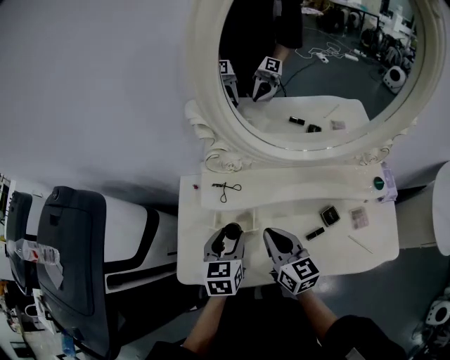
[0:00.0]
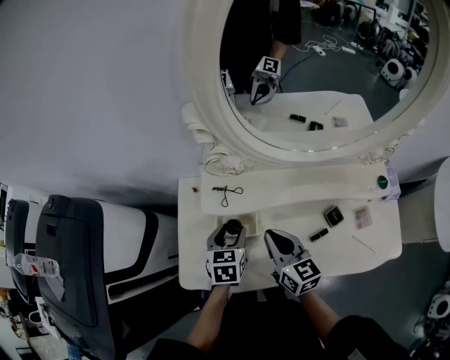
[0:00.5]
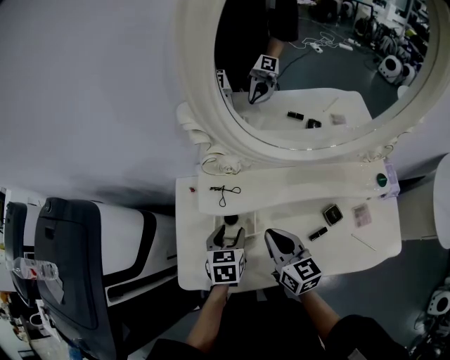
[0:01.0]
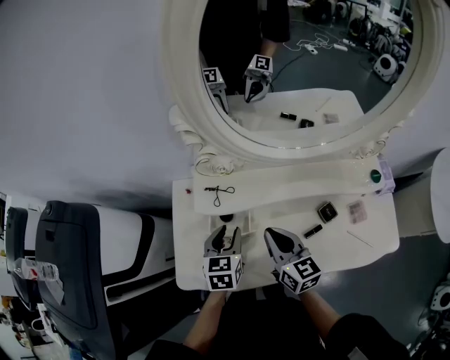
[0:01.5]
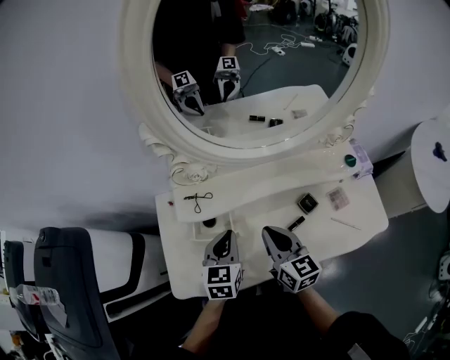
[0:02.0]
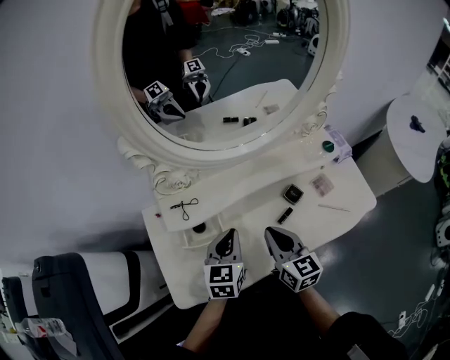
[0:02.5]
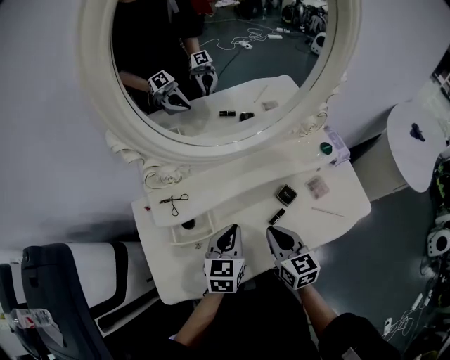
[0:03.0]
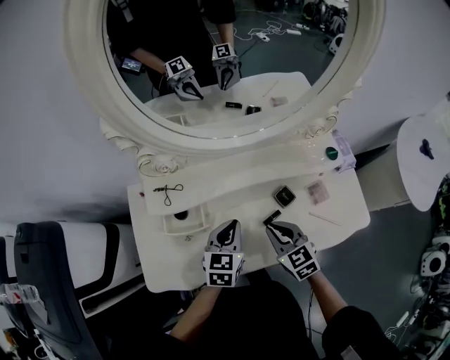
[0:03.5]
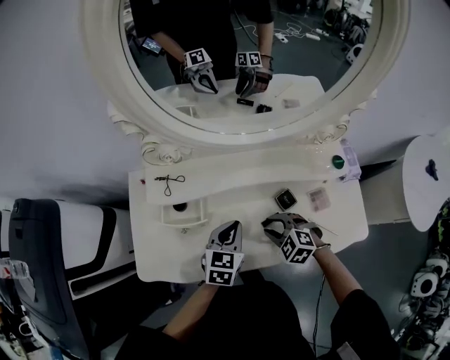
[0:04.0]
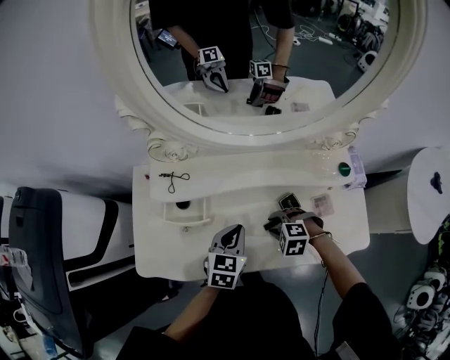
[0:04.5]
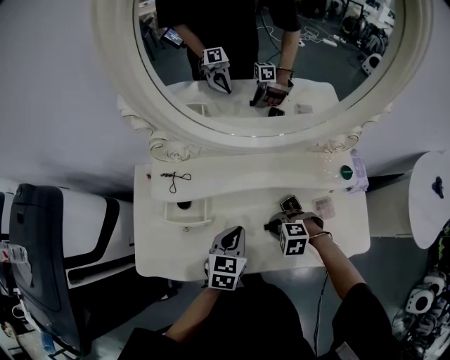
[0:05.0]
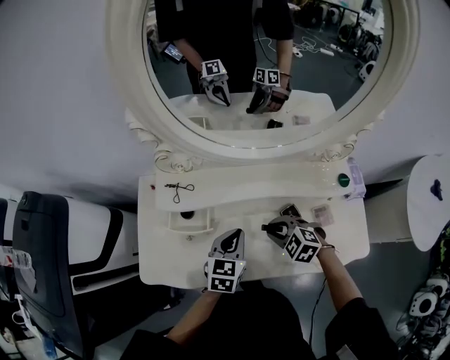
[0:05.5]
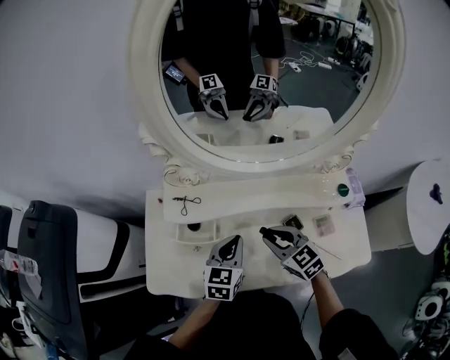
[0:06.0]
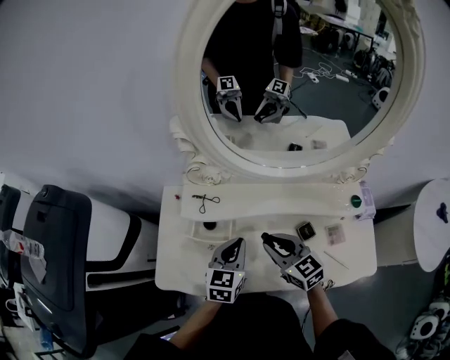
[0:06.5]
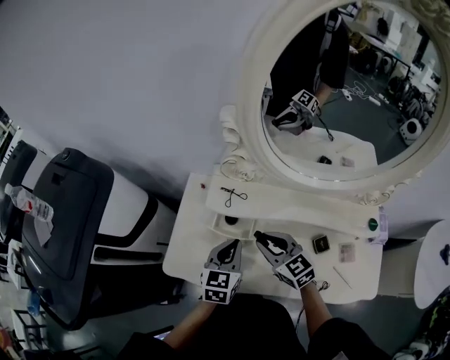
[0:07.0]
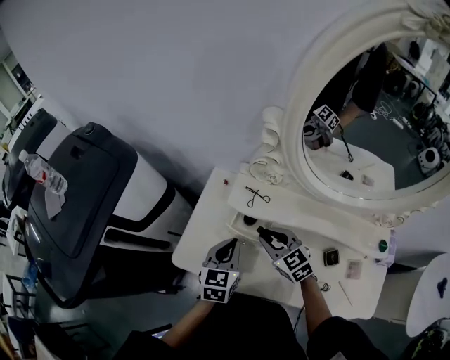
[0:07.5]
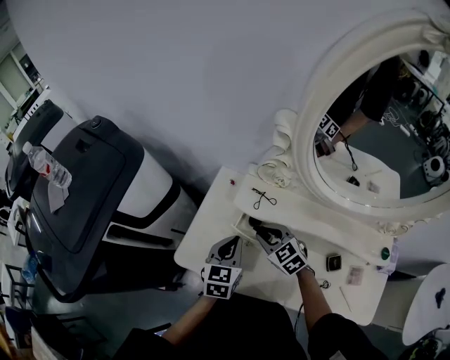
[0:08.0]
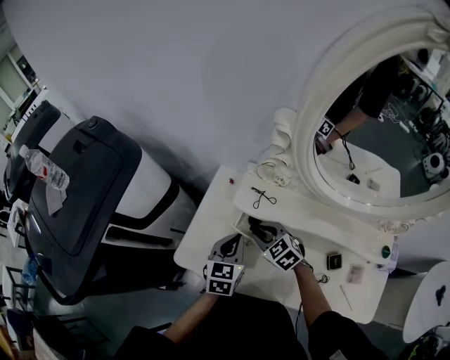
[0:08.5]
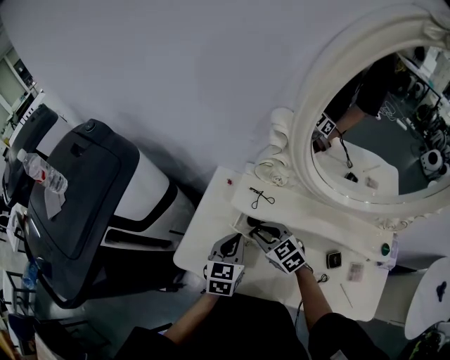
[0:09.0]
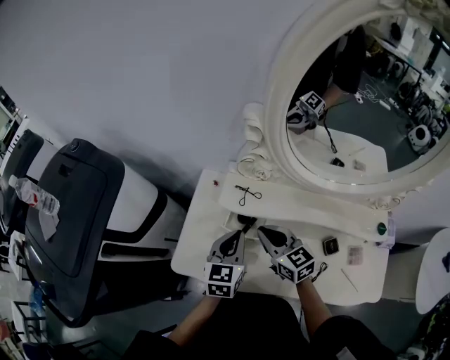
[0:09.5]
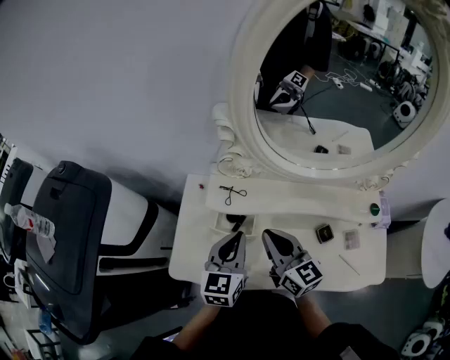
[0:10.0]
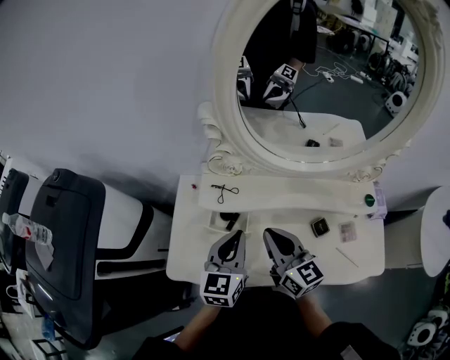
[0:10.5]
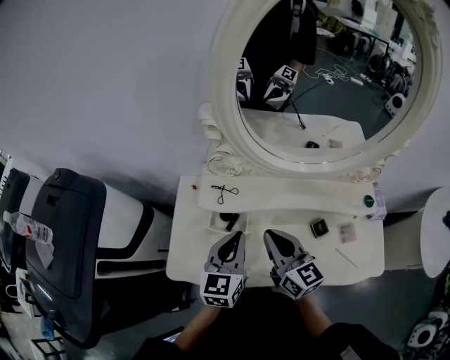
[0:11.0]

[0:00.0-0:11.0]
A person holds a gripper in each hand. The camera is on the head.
0:00.0 to 0:02.0: The two grippers go roughly 5 cm to the right. The left gripper closes its fingers.
0:02.0 to 0:03.5: The left gripper moves to the right, about 10 cm. Meanwhile the right gripper is displaced to the right and downward by approximately 10 cm, and rotates approximately 30 degrees.
0:03.5 to 0:05.5: The right gripper goes downward and returns, roughly 10 cm each way, and rotates some 50 degrees.
0:05.5 to 0:07.5: The right gripper goes about 25 cm to the left and forward, and changes its angle by some 30 degrees, while the left gripper travels to the left by approximately 20 cm, and turns by roughly 30 degrees.
0:07.5 to 0:09.0: The right gripper changes place by about 5 cm.
0:09.0 to 0:11.0: The left gripper goes approximately 10 cm upward and to the right. Meanwhile the right gripper is displaced upward, to the right and backward by approximately 20 cm, angles its fingers upward, by some 30 degrees, and closes.

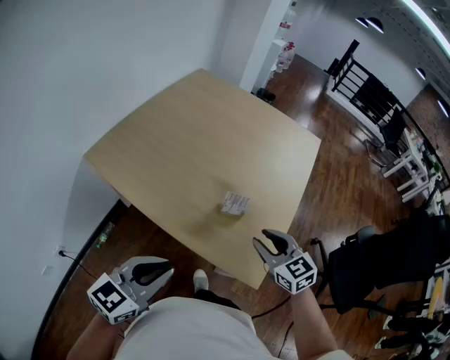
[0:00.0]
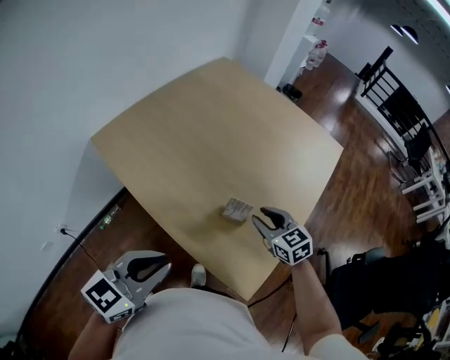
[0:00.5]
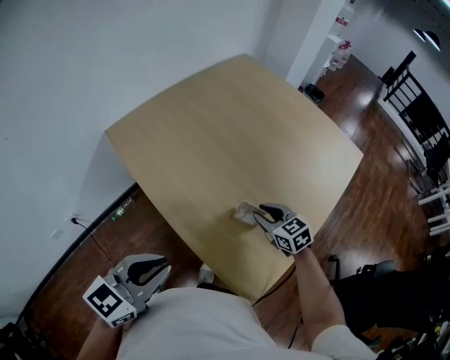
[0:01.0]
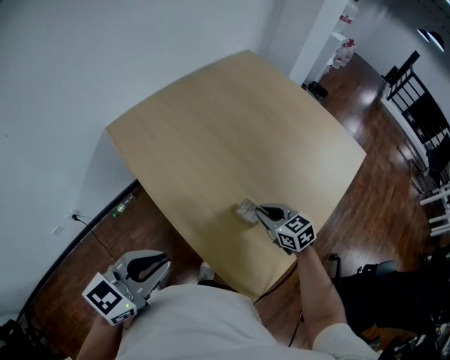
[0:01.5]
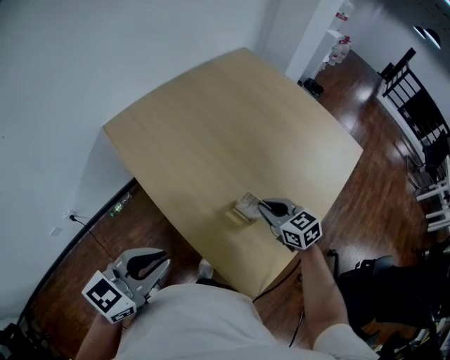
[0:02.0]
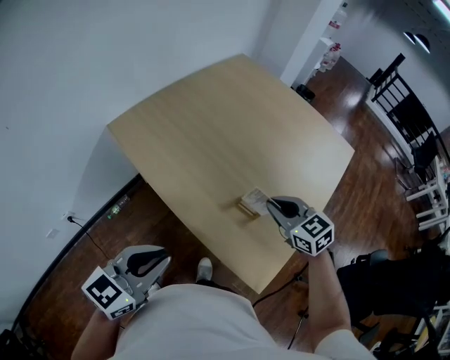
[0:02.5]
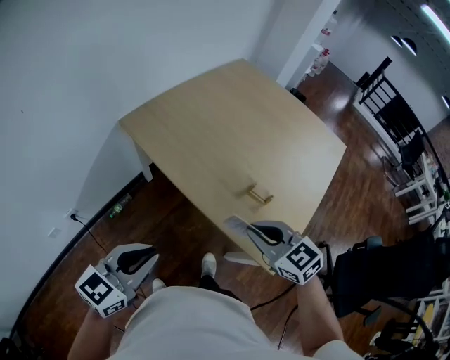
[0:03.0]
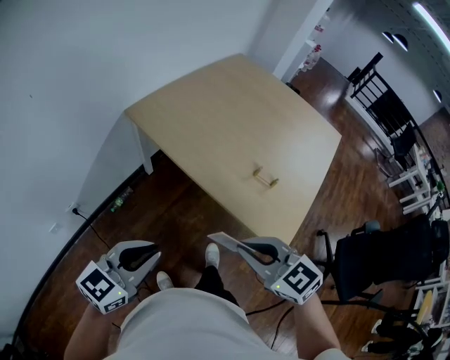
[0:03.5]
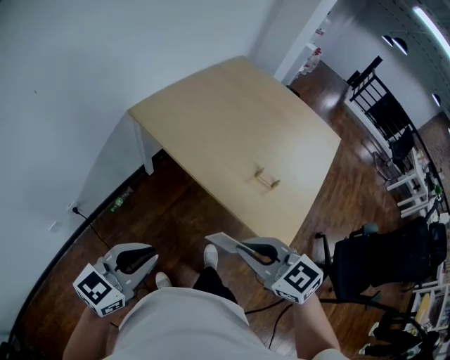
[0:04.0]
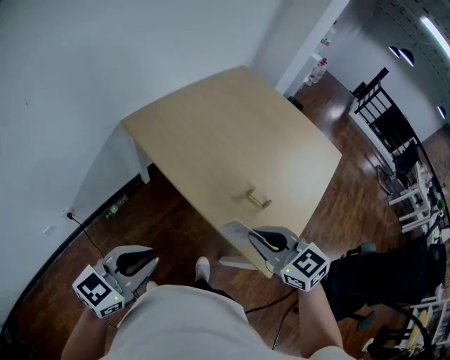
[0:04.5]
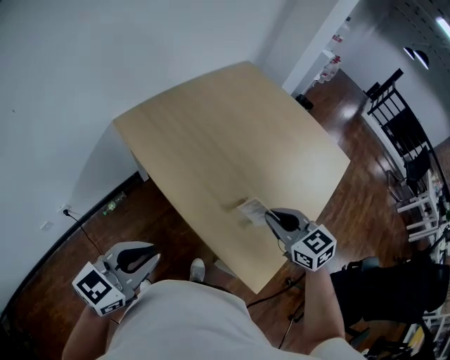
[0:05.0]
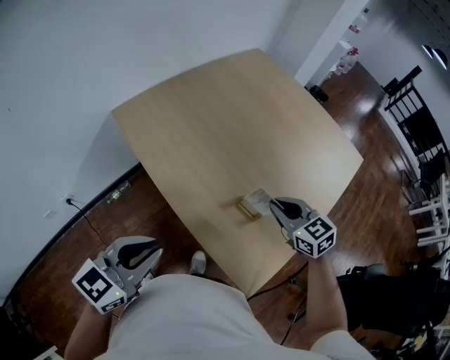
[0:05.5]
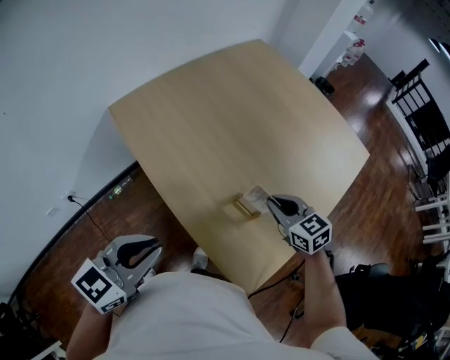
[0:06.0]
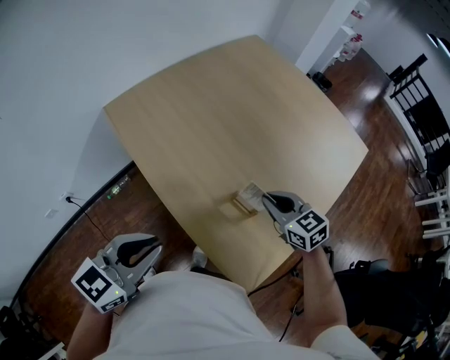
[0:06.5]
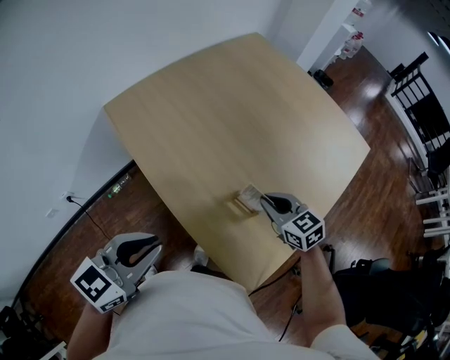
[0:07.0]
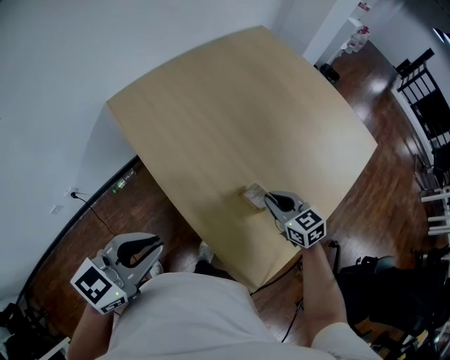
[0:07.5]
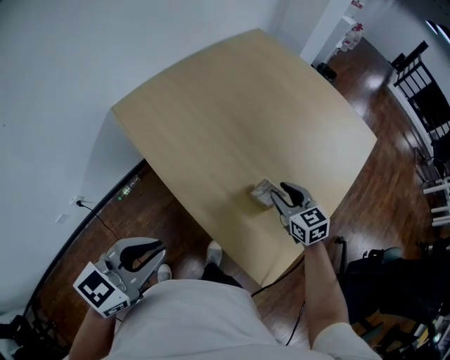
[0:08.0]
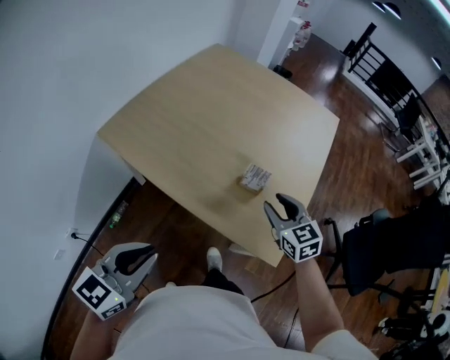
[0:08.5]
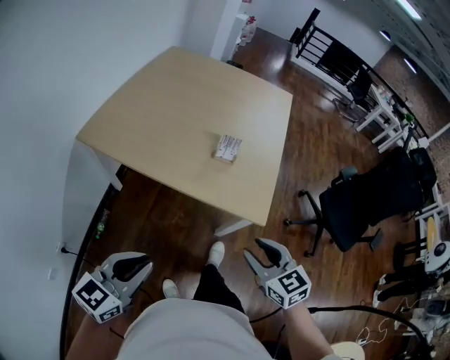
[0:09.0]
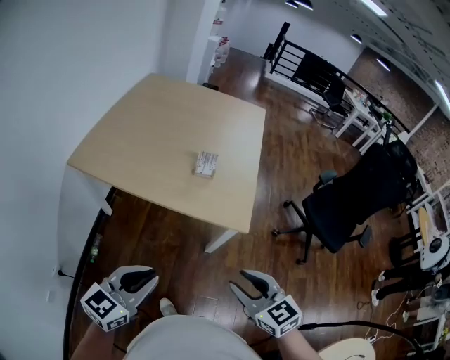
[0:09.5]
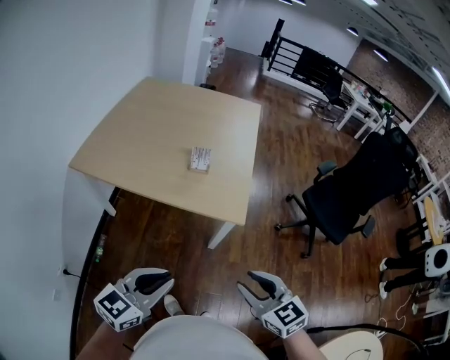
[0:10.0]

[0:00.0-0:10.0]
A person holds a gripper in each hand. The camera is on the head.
0:00.0 to 0:02.0: The right gripper is displaced forward and downward by some 20 cm, turns by approximately 20 degrees, and closes up. The left gripper moves forward, roughly 5 cm.
0:02.0 to 0:04.0: The right gripper moves backward, to the left and upward, about 40 cm, while the left gripper travels to the left and backward by approximately 25 cm.
0:04.0 to 0:06.0: The left gripper goes roughly 25 cm to the right and forward, while the right gripper moves forward, to the right and downward, roughly 40 cm.
0:06.0 to 0:08.0: The right gripper opens up.
0:08.0 to 0:10.0: The left gripper ends up some 30 cm from where it was, and turns by roughly 40 degrees. The right gripper moves roughly 60 cm, and swivels approximately 30 degrees.

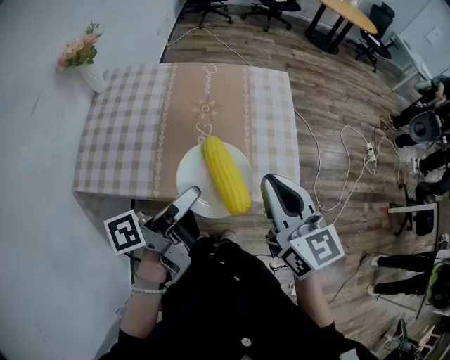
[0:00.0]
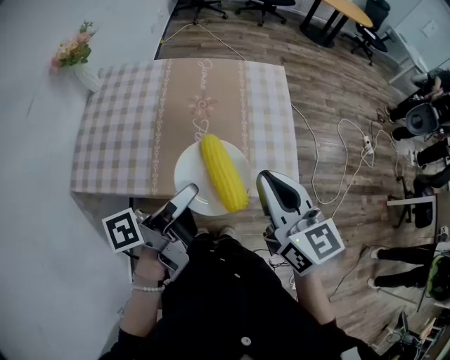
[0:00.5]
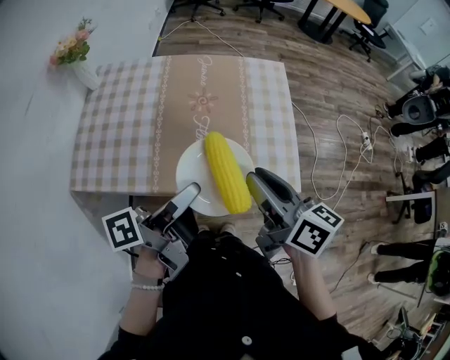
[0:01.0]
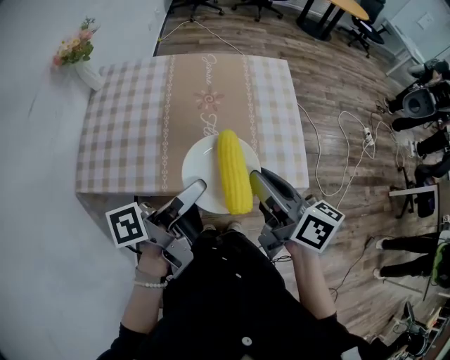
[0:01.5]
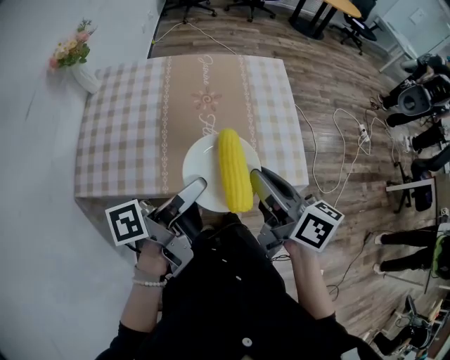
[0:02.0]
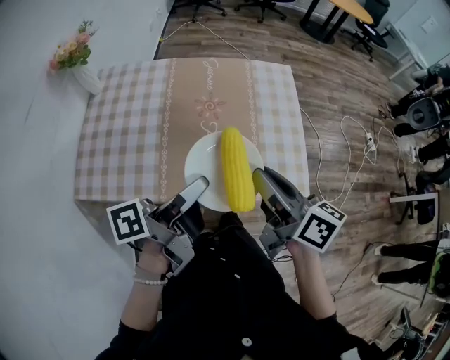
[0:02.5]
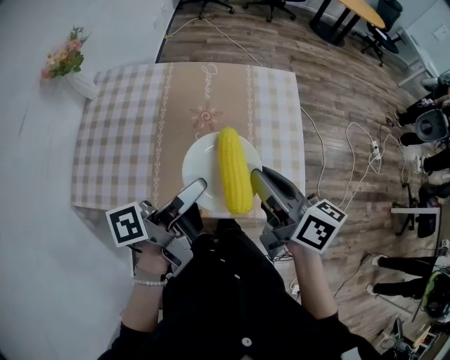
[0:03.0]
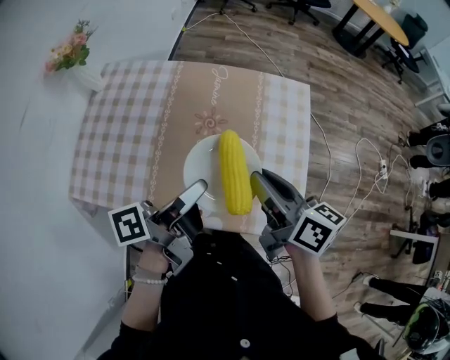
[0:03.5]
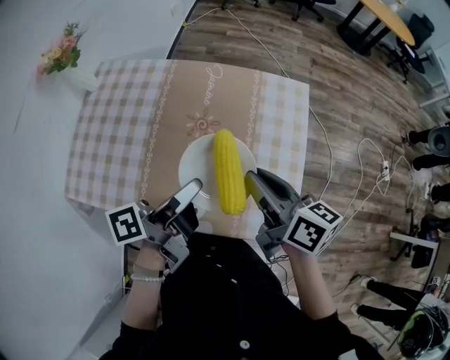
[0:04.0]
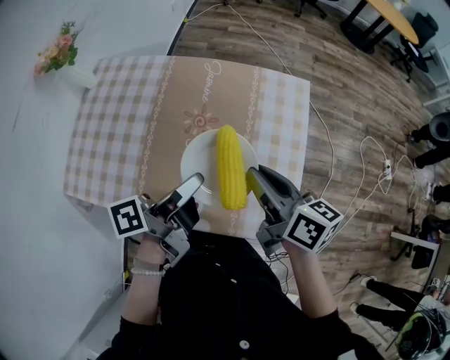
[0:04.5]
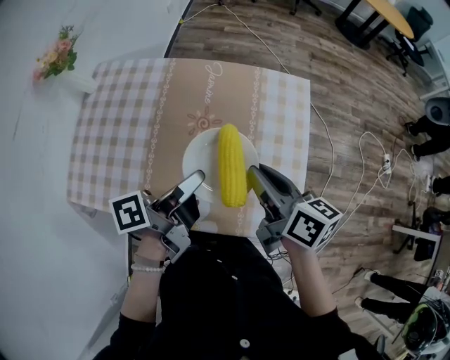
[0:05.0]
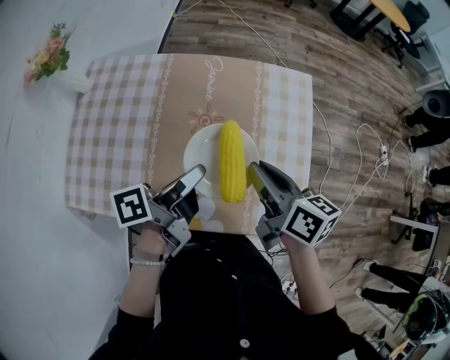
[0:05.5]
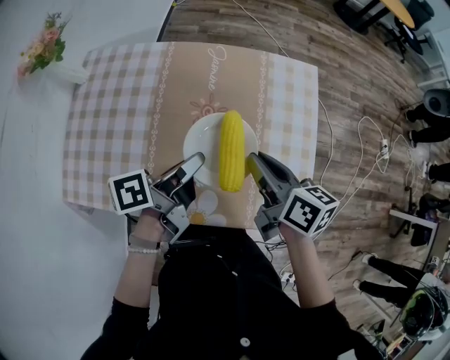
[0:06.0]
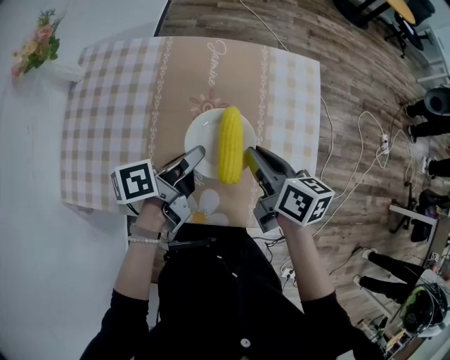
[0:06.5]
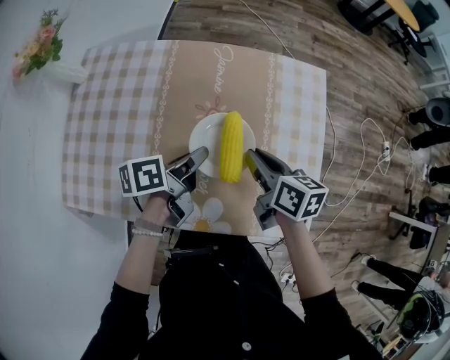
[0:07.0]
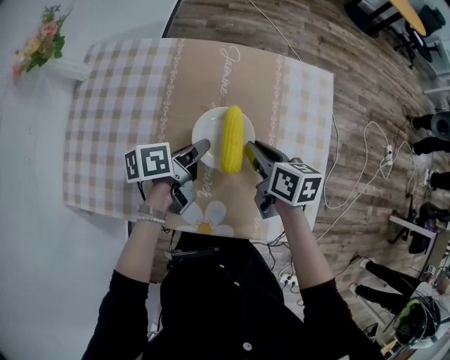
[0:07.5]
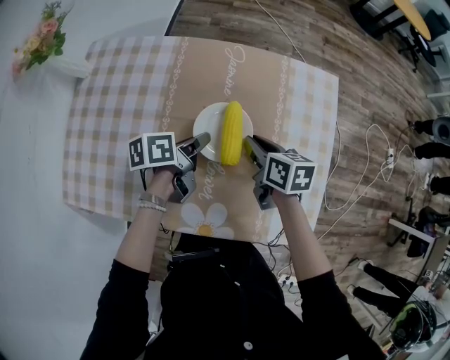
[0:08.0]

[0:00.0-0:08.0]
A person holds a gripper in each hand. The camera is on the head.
0:00.0 to 0:02.0: The right gripper moves to the left, some 5 cm, and changes its angle by some 40 degrees.
0:02.0 to 0:04.0: The left gripper heads forward and to the right, covering roughly 20 cm; the right gripper is displaced forward by some 20 cm.
0:04.0 to 0:06.0: The right gripper shifts approximately 5 cm downward. Meanwhile the left gripper is displaced downward and forward by some 10 cm.
0:06.0 to 0:08.0: The two grippers go approximately 15 cm downward and forward.
